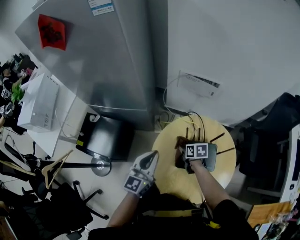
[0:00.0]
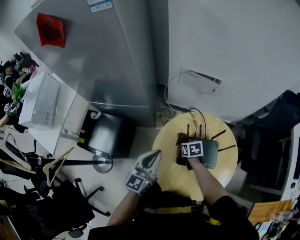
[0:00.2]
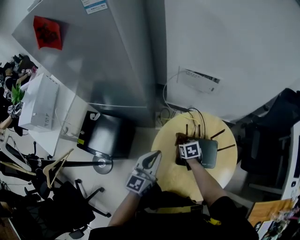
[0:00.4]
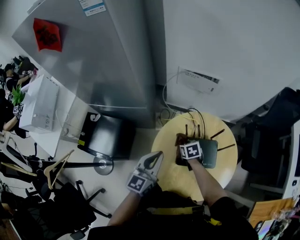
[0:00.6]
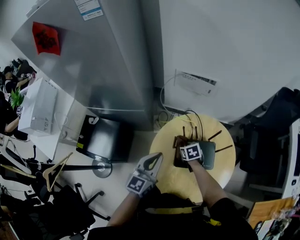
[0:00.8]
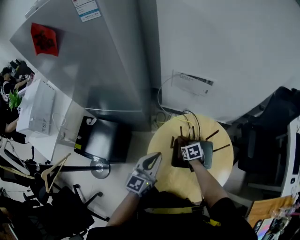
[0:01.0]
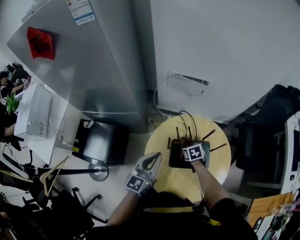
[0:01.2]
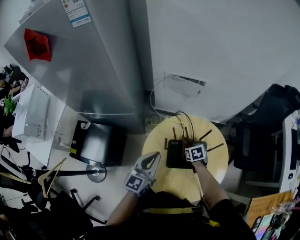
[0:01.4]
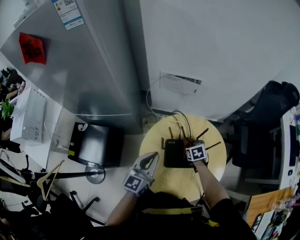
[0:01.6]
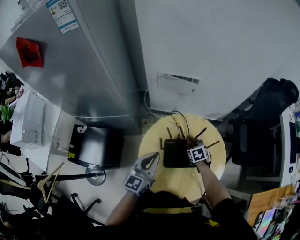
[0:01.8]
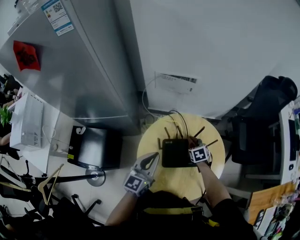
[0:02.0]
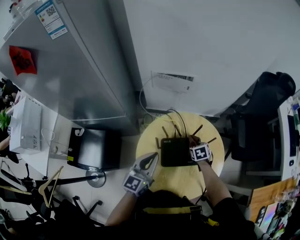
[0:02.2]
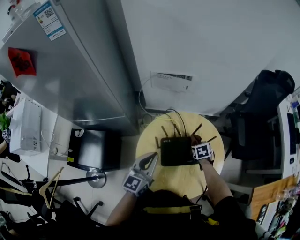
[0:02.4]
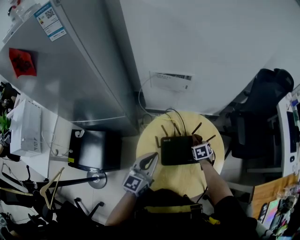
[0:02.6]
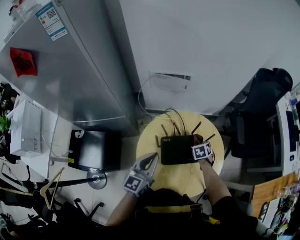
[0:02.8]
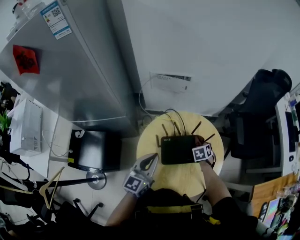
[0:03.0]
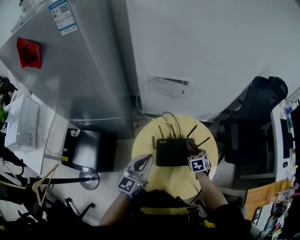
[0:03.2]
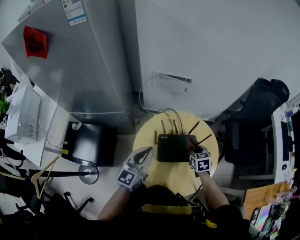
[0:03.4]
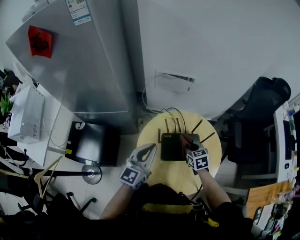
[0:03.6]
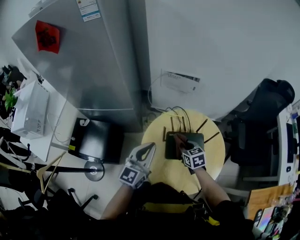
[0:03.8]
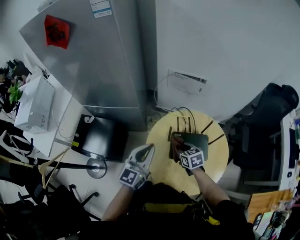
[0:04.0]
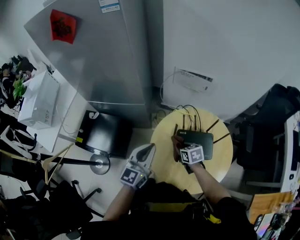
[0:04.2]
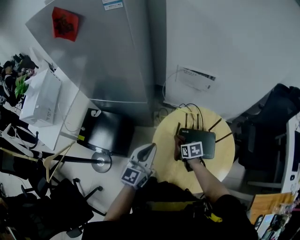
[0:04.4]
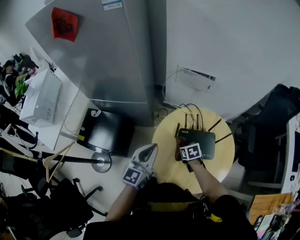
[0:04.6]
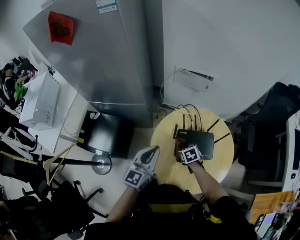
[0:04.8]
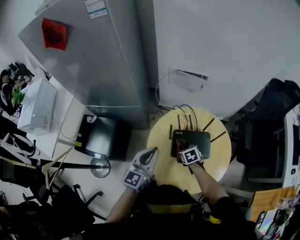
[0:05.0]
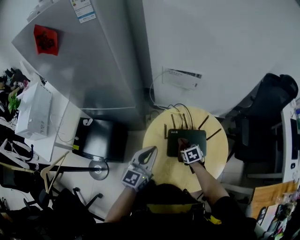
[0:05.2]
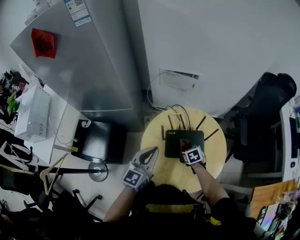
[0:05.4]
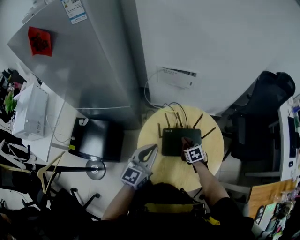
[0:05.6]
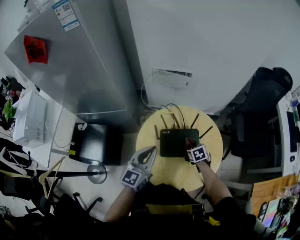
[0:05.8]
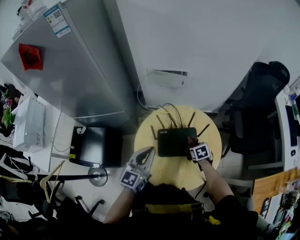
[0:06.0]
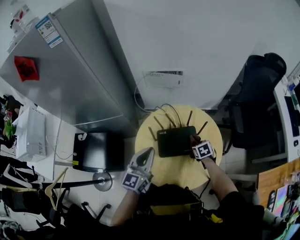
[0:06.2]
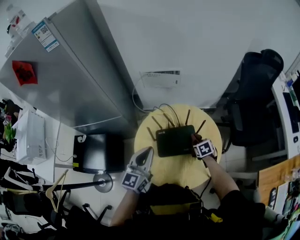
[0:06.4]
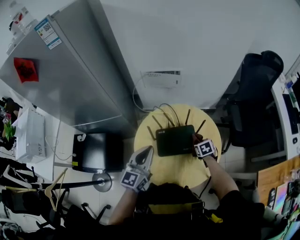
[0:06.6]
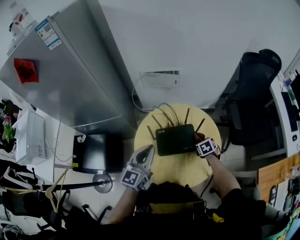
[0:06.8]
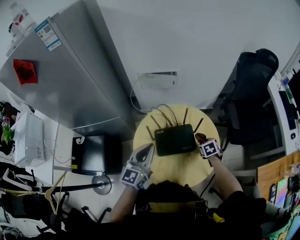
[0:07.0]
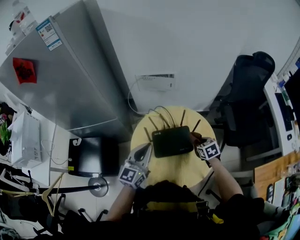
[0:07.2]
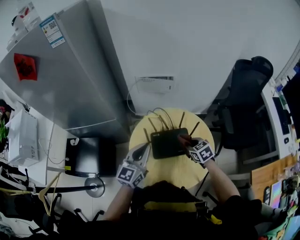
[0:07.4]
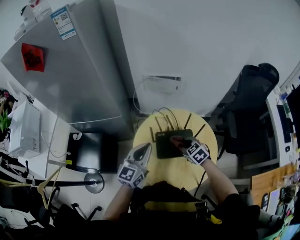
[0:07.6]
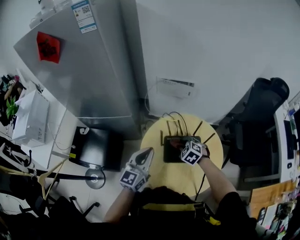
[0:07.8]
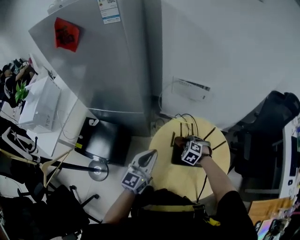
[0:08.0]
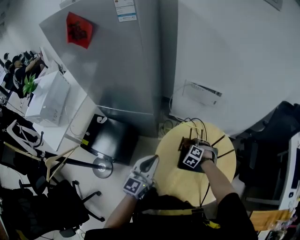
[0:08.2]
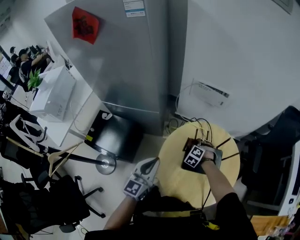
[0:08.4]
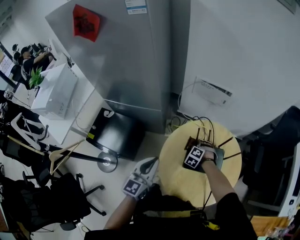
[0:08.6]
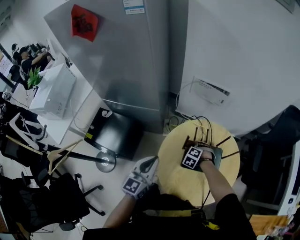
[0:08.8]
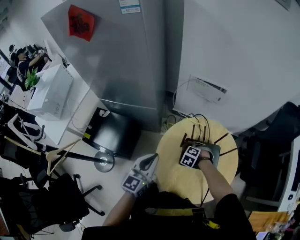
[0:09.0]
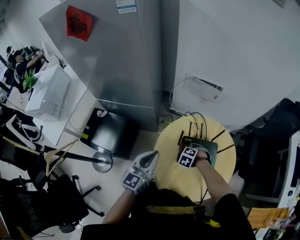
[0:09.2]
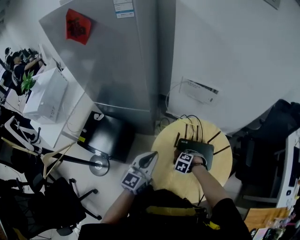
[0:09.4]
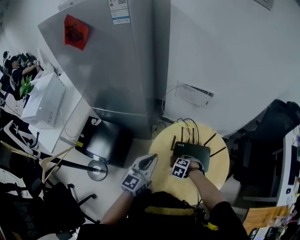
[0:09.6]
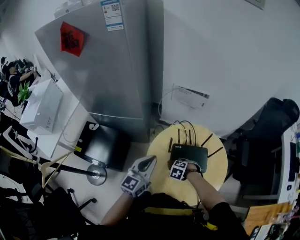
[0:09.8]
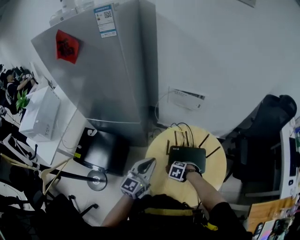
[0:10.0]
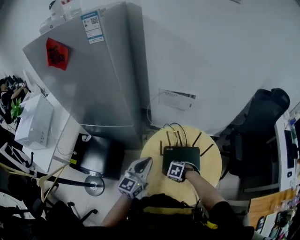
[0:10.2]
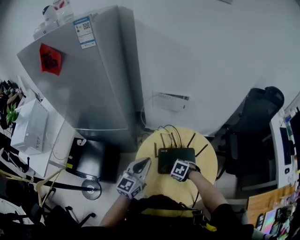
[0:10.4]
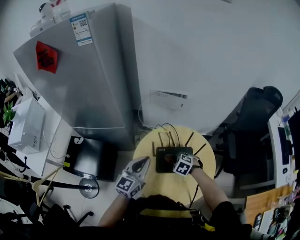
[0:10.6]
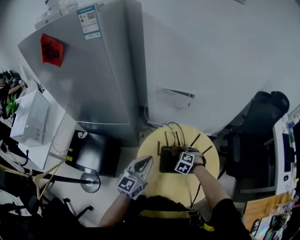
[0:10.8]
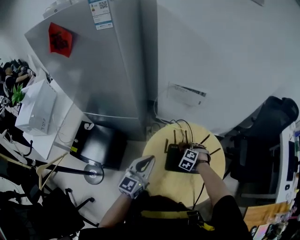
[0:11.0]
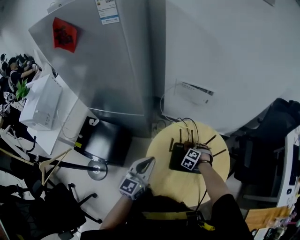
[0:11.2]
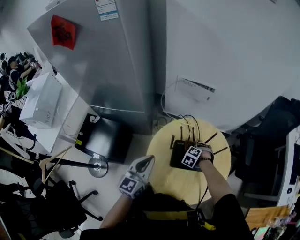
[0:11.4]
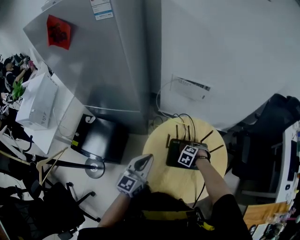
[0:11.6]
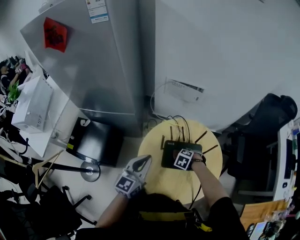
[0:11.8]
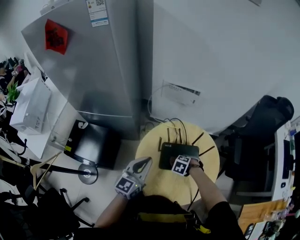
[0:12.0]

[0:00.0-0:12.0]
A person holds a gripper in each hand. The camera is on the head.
0:00.0 to 0:01.6: The right gripper heads to the right, covering about 15 cm, and changes its angle by roughly 30 degrees. Meanwhile the left gripper is displaced to the right by approximately 5 cm.
0:01.6 to 0:03.0: The right gripper shifts by approximately 10 cm, and turns by some 20 degrees.
0:03.0 to 0:04.4: The right gripper reaches roughly 5 cm upward, then returns, and turns by some 40 degrees; the left gripper ends up about 10 cm from where it was.
0:04.4 to 0:06.0: The left gripper goes approximately 10 cm to the right. The right gripper moves to the right, some 20 cm.
0:06.0 to 0:07.6: The right gripper goes about 15 cm upward and to the left, and swivels some 30 degrees.
0:07.6 to 0:09.0: The right gripper moves to the left and downward, some 15 cm, and swivels roughly 50 degrees. Meanwhile the left gripper heads to the left, covering approximately 10 cm.
0:09.0 to 0:10.4: The left gripper changes place by approximately 10 cm. The right gripper changes place by about 10 cm, and changes its angle by some 30 degrees.
0:10.4 to 0:12.0: The right gripper swivels roughly 20 degrees.

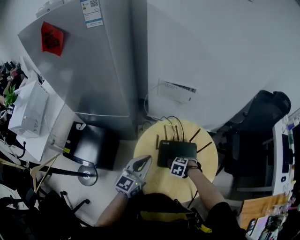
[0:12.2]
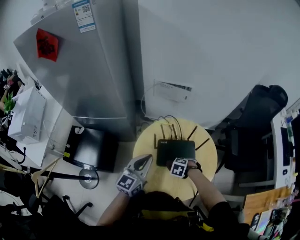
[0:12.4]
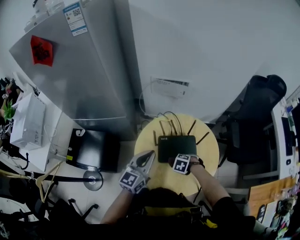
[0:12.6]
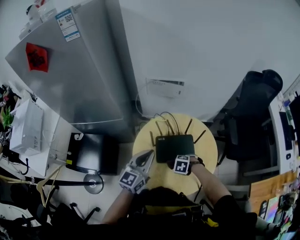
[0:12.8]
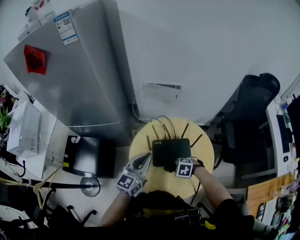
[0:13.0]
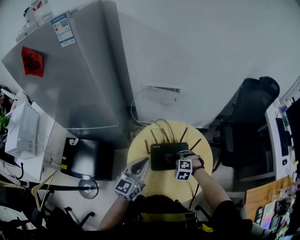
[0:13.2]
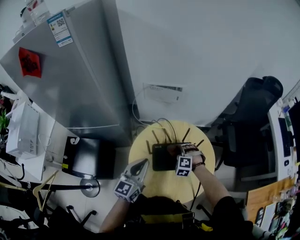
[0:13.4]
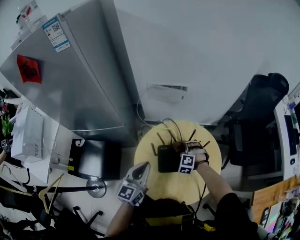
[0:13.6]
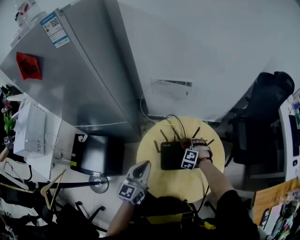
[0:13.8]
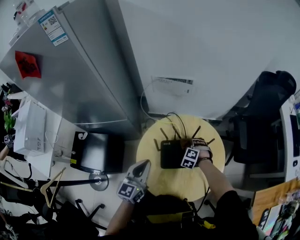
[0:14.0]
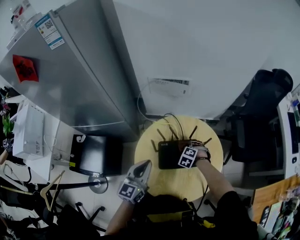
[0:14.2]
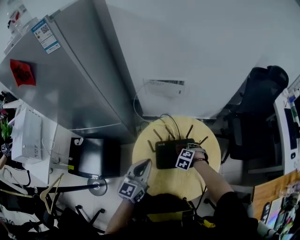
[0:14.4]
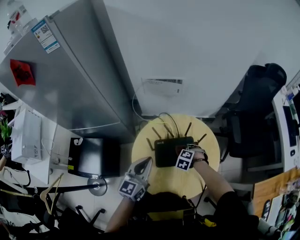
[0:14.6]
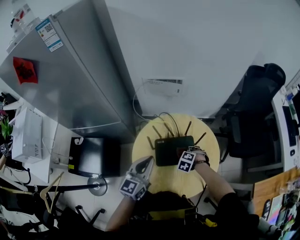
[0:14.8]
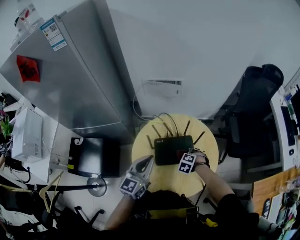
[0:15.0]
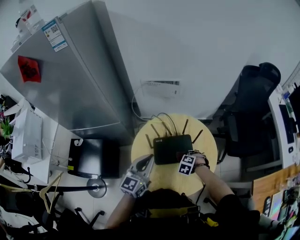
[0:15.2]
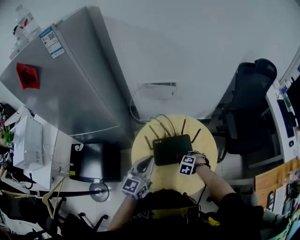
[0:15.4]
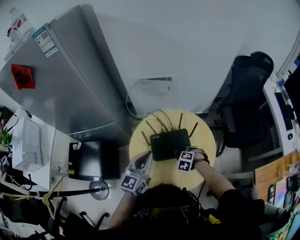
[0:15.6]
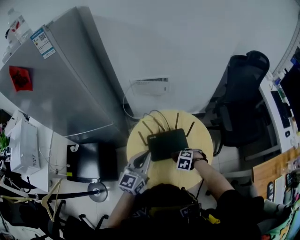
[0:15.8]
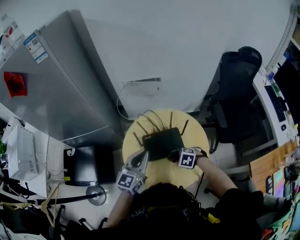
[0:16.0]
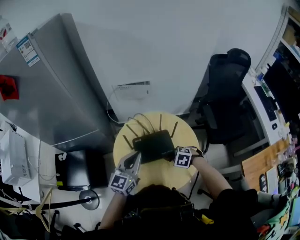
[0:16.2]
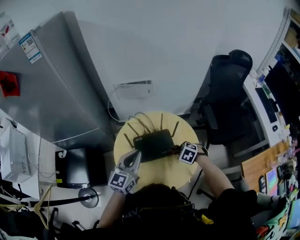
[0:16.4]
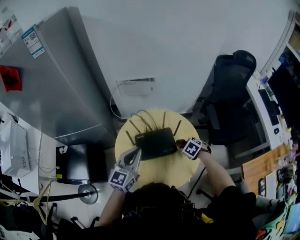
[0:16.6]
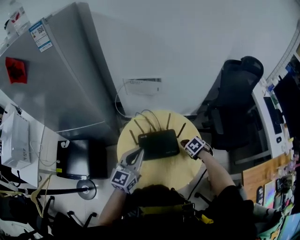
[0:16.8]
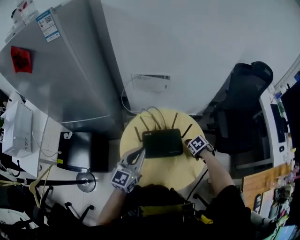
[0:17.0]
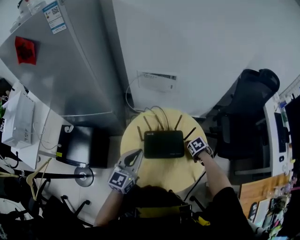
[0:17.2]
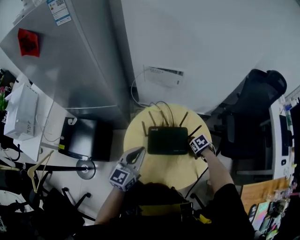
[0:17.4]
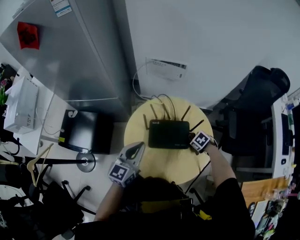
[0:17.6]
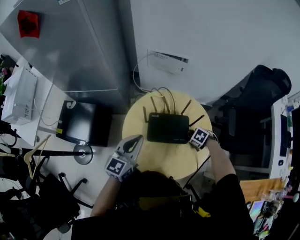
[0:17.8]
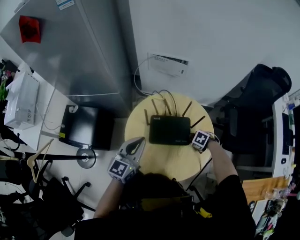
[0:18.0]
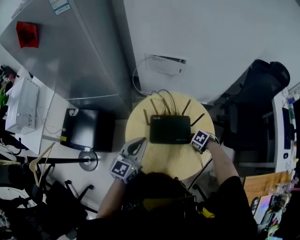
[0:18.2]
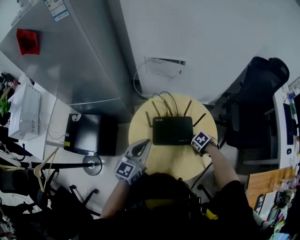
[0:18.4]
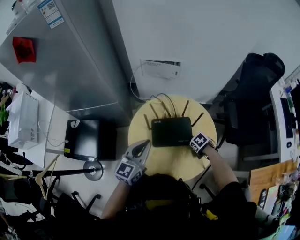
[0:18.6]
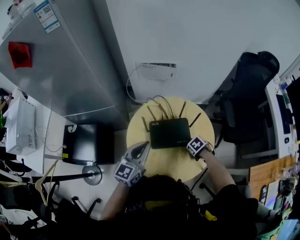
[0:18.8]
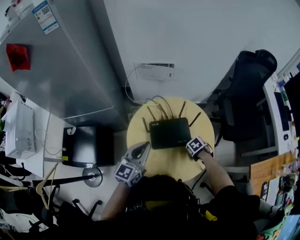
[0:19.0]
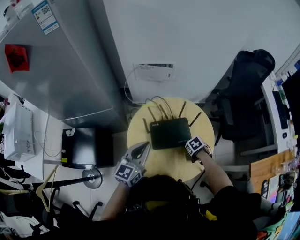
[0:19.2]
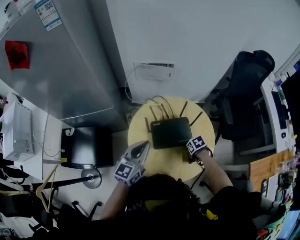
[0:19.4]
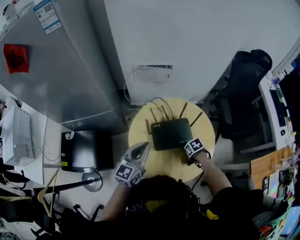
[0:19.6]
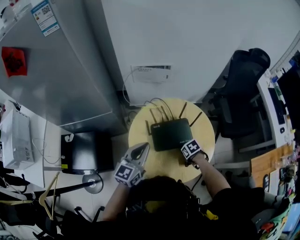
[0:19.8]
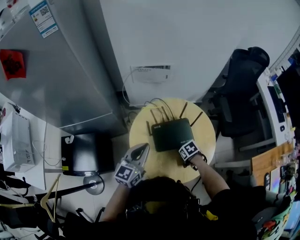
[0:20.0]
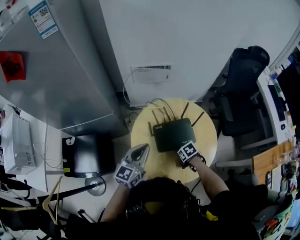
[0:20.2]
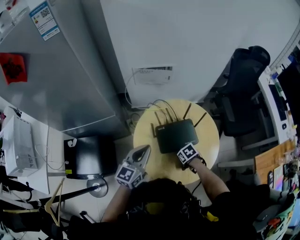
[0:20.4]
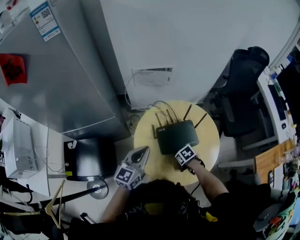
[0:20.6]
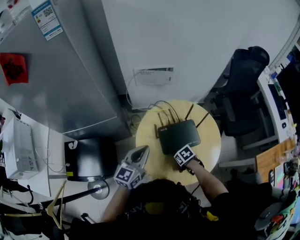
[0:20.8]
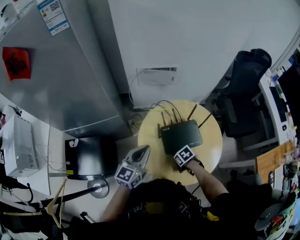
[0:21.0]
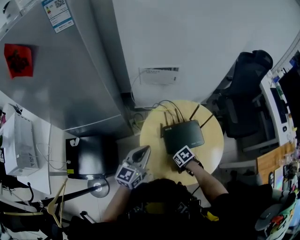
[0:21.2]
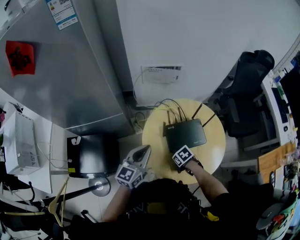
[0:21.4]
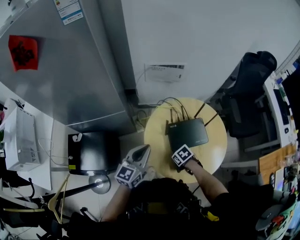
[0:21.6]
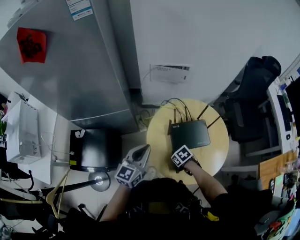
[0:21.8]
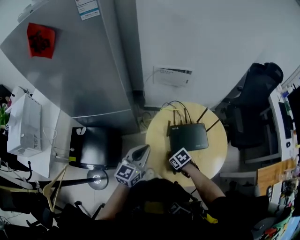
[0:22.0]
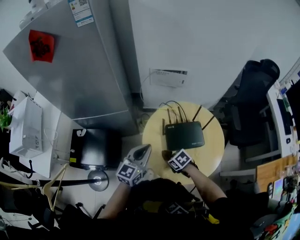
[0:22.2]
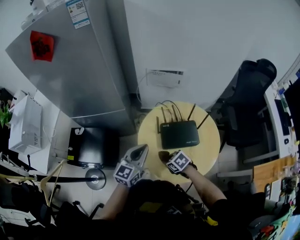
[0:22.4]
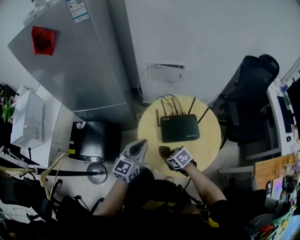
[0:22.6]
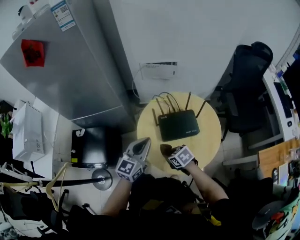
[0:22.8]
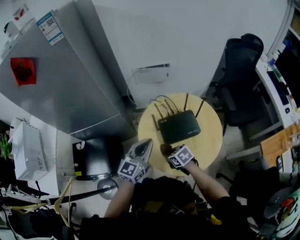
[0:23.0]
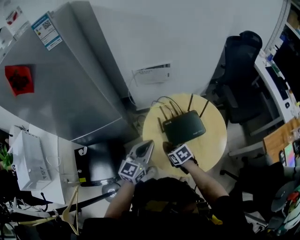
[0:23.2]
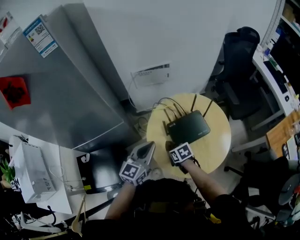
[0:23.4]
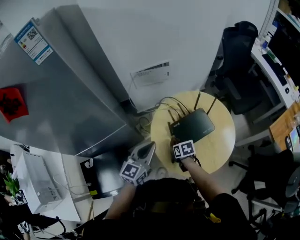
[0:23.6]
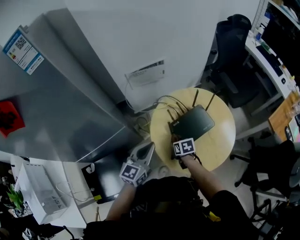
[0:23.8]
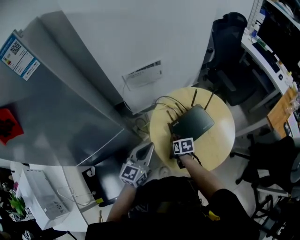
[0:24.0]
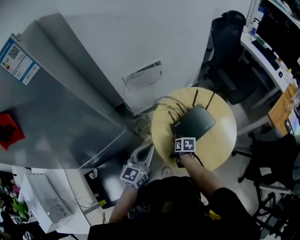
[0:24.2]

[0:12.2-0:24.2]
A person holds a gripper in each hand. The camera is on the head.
0:12.2 to 0:13.8: The right gripper ends up about 15 cm from where it was, and tips its fingers upward by approximately 30 degrees.
0:13.8 to 0:15.2: The right gripper moves roughly 15 cm, and swivels about 20 degrees; the left gripper changes place by roughly 5 cm.
0:15.2 to 0:16.6: The right gripper moves some 10 cm, and rotates about 30 degrees.
0:16.6 to 0:18.2: The right gripper is displaced downward by approximately 10 cm, and changes its angle by roughly 20 degrees.
0:18.2 to 0:19.8: The right gripper moves some 10 cm, and rotates some 40 degrees.
0:19.8 to 0:21.2: The right gripper shifts by some 15 cm. The left gripper shifts by approximately 5 cm.
0:21.2 to 0:22.6: The left gripper moves approximately 5 cm, while the right gripper is displaced upward by roughly 10 cm, and turns by approximately 30 degrees.
0:22.6 to 0:24.2: The left gripper changes place by about 15 cm, and turns by approximately 30 degrees. The right gripper shifts by approximately 15 cm, and rolls clockwise, seen from behind, by some 70 degrees.
